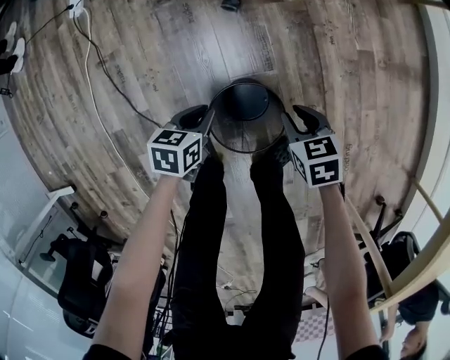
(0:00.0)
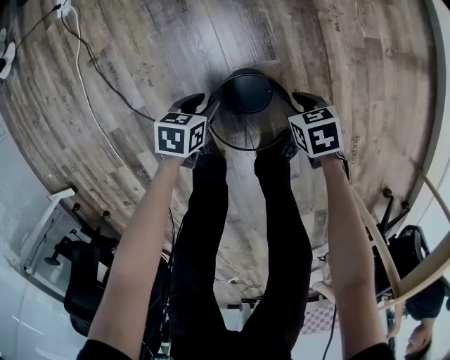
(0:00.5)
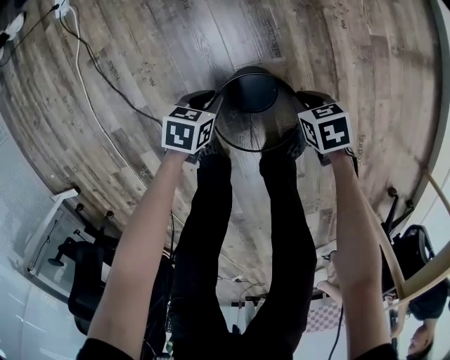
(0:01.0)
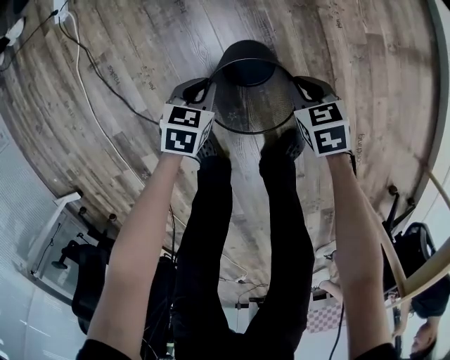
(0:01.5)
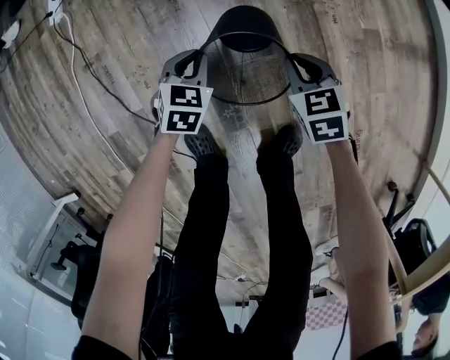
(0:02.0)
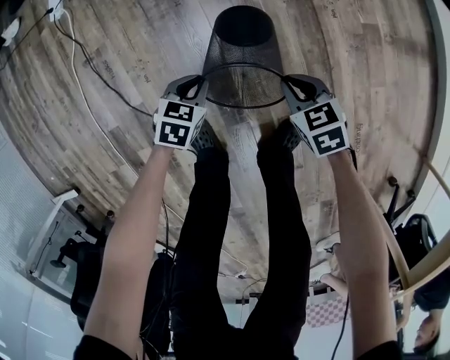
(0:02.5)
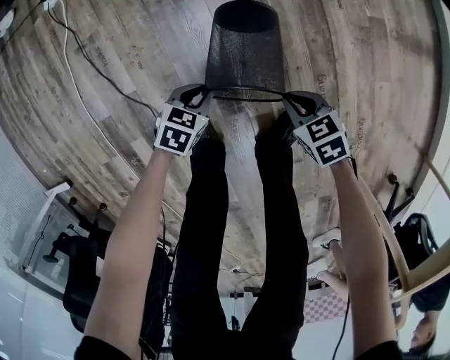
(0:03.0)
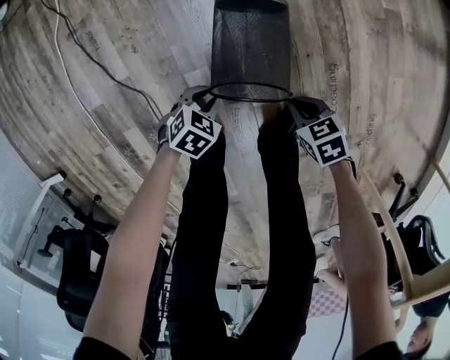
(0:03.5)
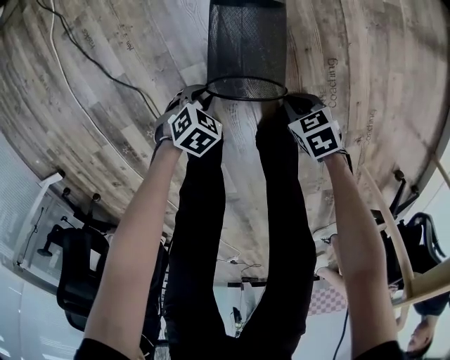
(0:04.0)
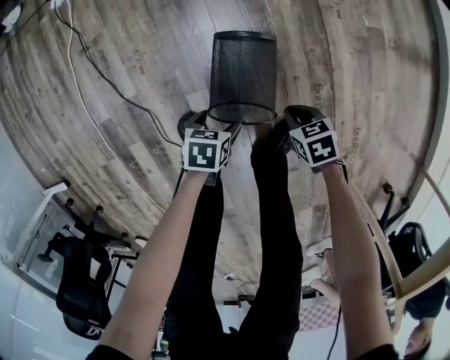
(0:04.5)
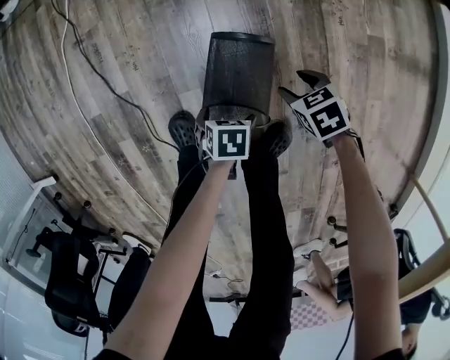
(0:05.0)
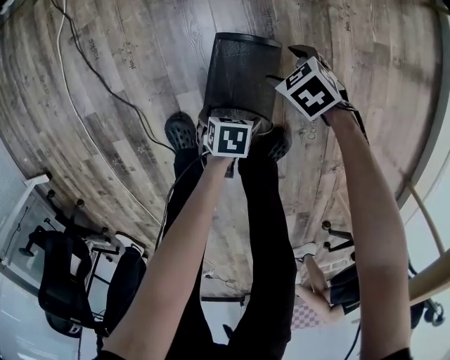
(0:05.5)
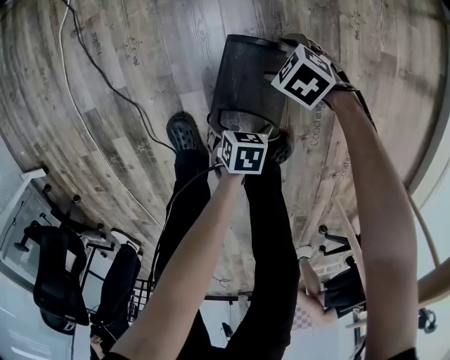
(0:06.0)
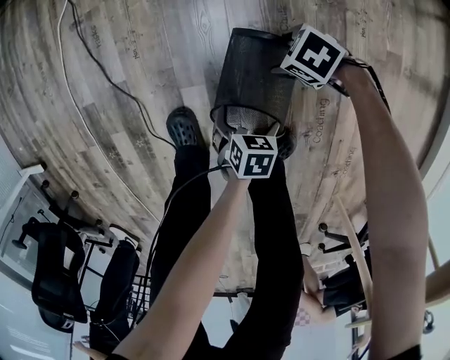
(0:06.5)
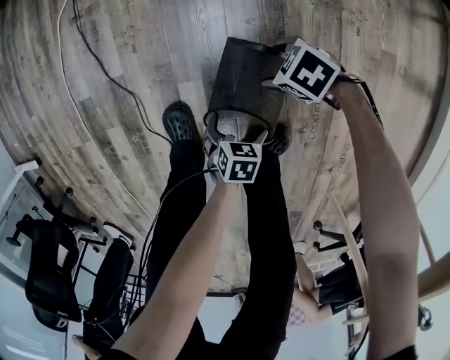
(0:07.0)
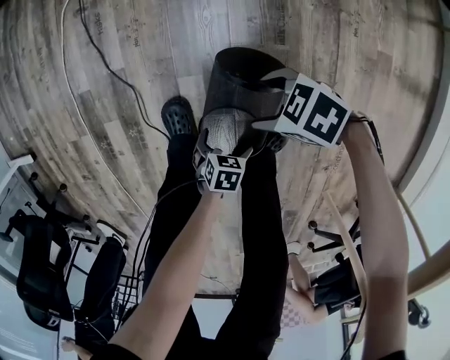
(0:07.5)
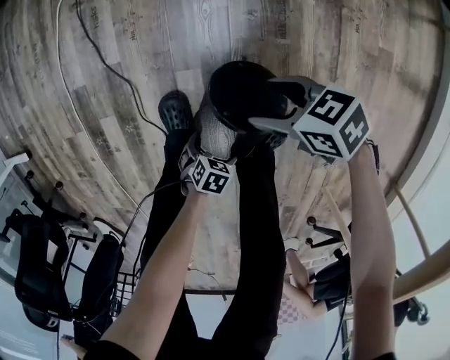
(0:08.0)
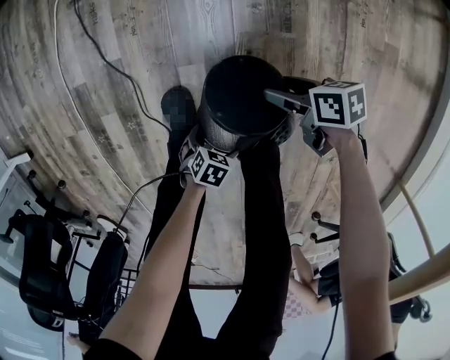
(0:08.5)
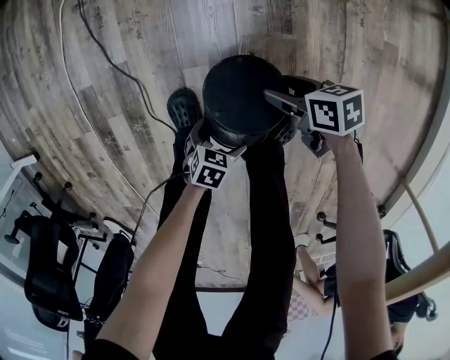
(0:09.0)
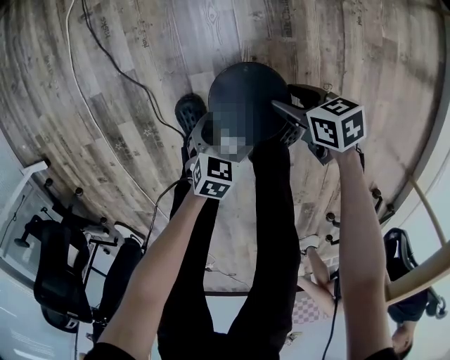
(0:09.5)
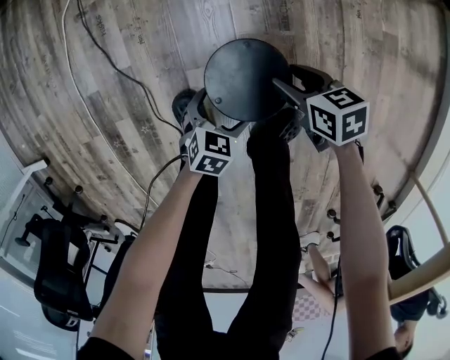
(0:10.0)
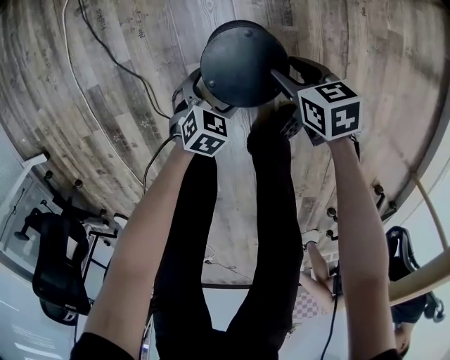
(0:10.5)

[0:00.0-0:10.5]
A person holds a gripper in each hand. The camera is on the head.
0:00.0 to 0:02.0: The left gripper ends up approximately 10 cm from where it was, and swivels approximately 40 degrees, while the right gripper moves about 10 cm.
0:02.0 to 0:04.0: The right gripper moves roughly 30 cm, and rotates approximately 30 degrees, while the left gripper ends up about 30 cm from where it was, and turns by about 30 degrees.
0:04.0 to 0:06.5: The right gripper shifts by some 25 cm, rotates roughly 40 degrees, and opens up. The left gripper ends up approximately 10 cm from where it was, rotates around the line of its fingers by some 50 degrees, counterclockwise from behind, and opens up.
0:06.5 to 0:08.5: The left gripper changes place by some 20 cm, and swivels about 20 degrees, while the right gripper ends up about 15 cm from where it was, and twists about 50 degrees clockwise, seen from behind.
0:08.5 to 0:10.5: The right gripper rotates some 30 degrees; the left gripper shifts by some 20 cm, and rotates approximately 30 degrees.

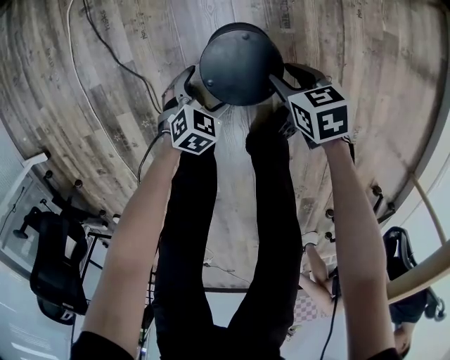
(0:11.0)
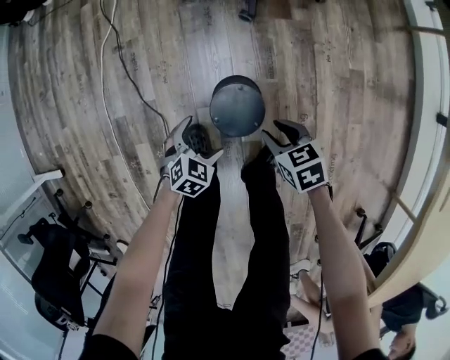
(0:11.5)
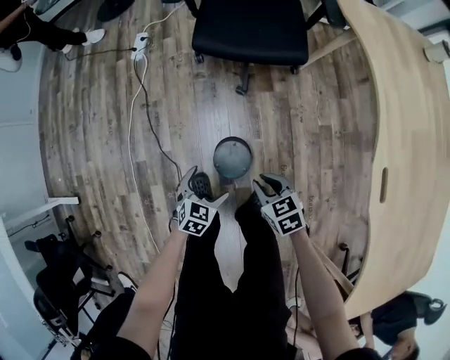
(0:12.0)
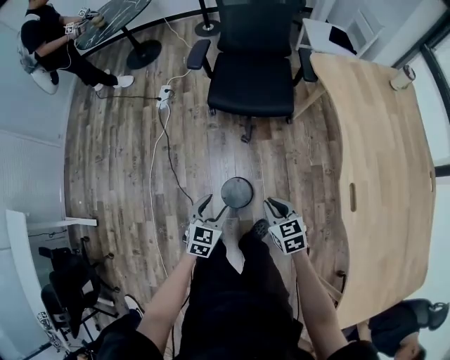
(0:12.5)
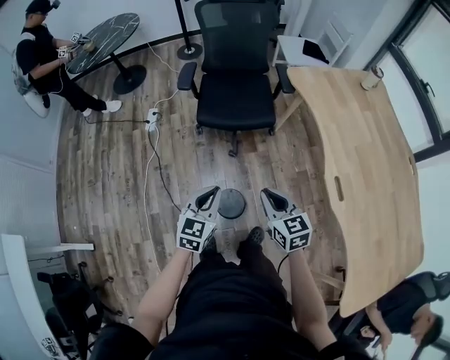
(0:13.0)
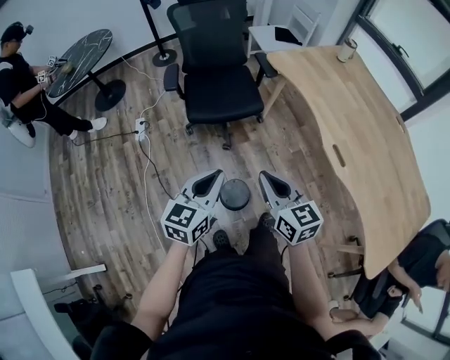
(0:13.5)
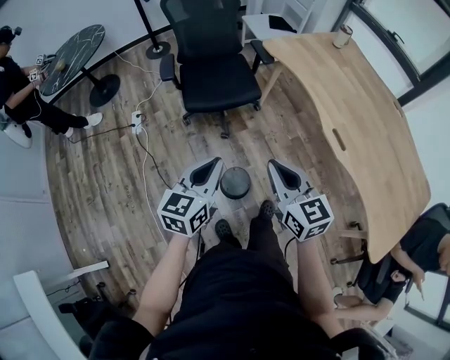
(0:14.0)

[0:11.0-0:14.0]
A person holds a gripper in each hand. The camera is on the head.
0:11.0 to 0:12.5: Both grippers move upward, approximately 50 cm. The right gripper turns by roughly 30 degrees; the left gripper turns by roughly 30 degrees, and closes its fingers.
0:12.5 to 0:14.0: Both grippers move upward, some 25 cm. The right gripper turns by some 40 degrees. The left gripper changes its angle by about 30 degrees, and closes up.

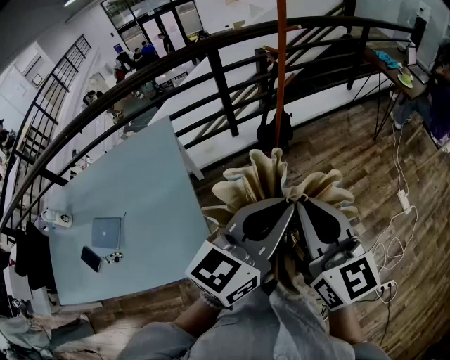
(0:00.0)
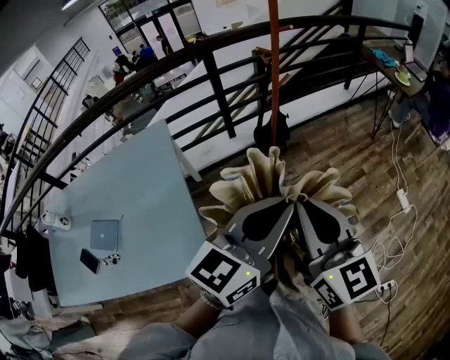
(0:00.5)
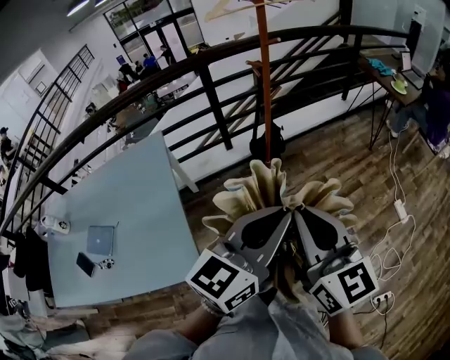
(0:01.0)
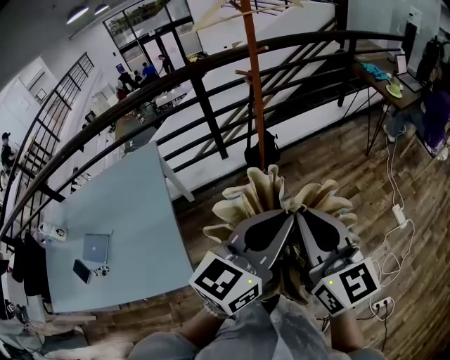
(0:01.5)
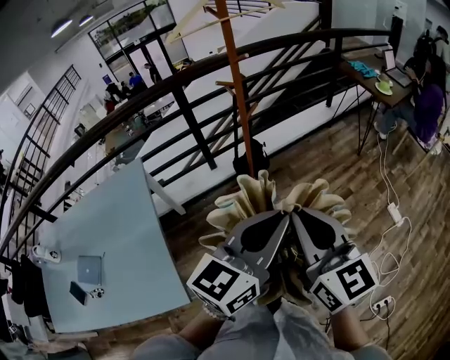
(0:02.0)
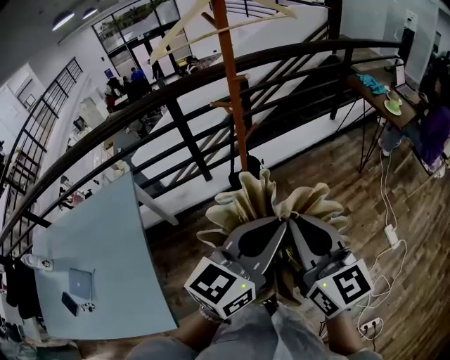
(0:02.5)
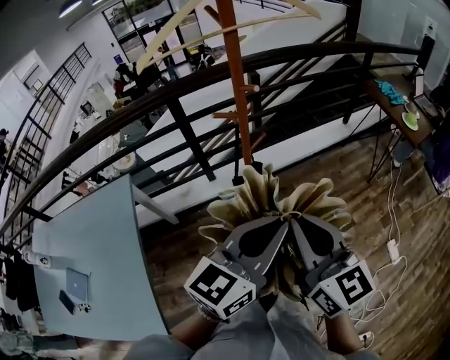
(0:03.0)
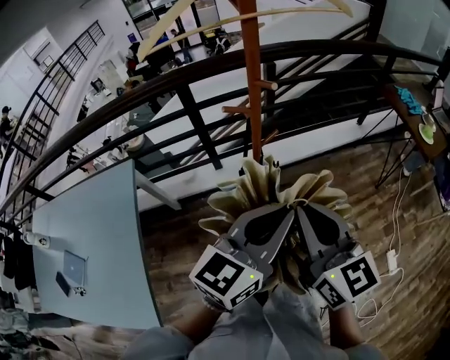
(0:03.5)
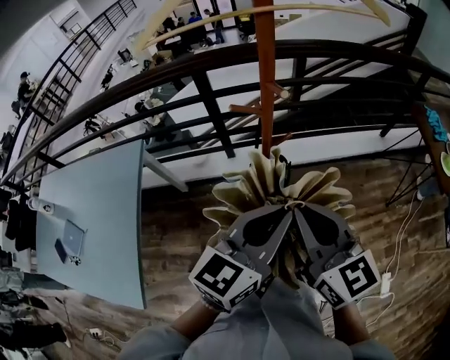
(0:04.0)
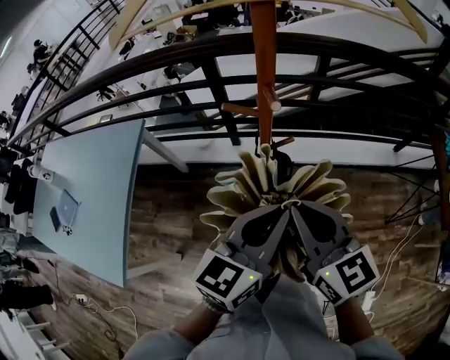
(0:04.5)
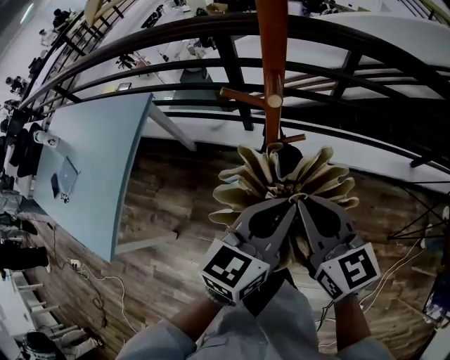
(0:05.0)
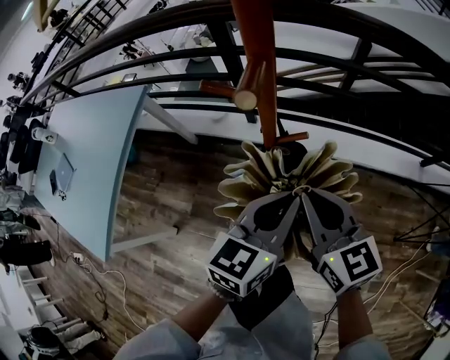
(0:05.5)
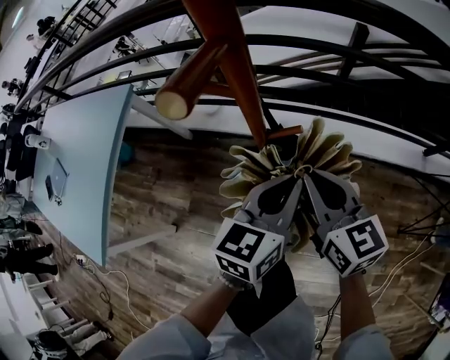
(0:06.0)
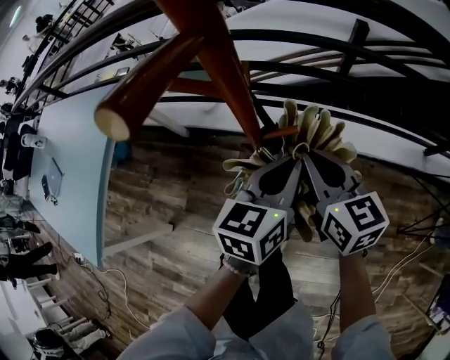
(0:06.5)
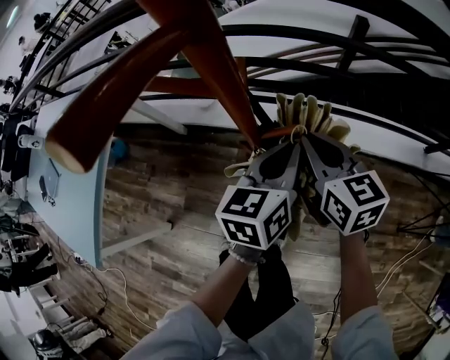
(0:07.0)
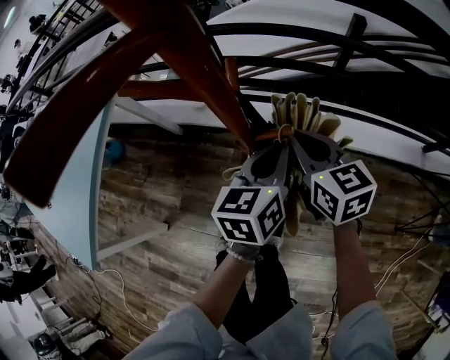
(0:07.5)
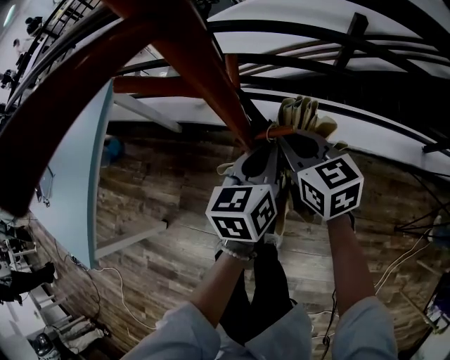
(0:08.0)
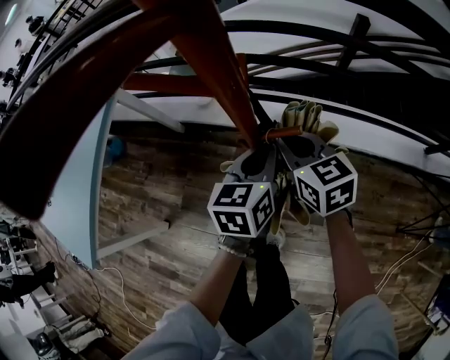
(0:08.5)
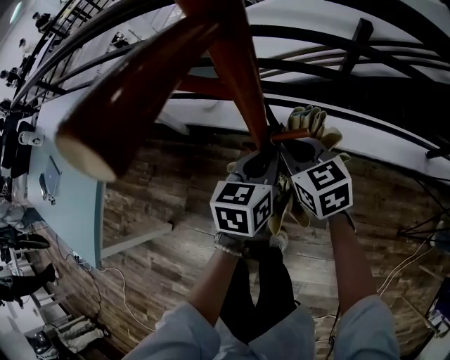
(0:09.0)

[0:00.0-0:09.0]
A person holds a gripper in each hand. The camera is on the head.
0:00.0 to 0:02.0: The two grippers go roughly 15 cm to the right and forward.
0:02.0 to 0:04.5: The left gripper ends up some 40 cm from where it was, and turns by roughly 40 degrees. The right gripper shifts by about 40 cm, and turns by approximately 40 degrees.
0:04.5 to 0:07.0: The right gripper heads forward and downward, covering roughly 30 cm; the left gripper travels downward and forward by roughly 30 cm, and turns by roughly 20 degrees.
0:07.0 to 0:09.0: The right gripper shifts approximately 10 cm downward and to the left. The left gripper is displaced downward by approximately 5 cm.

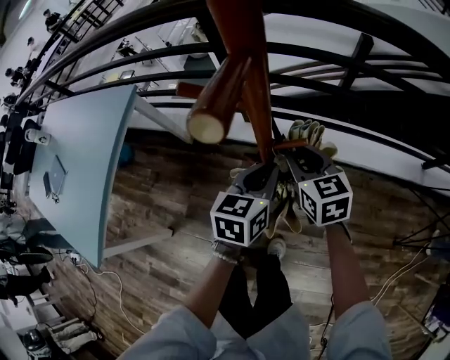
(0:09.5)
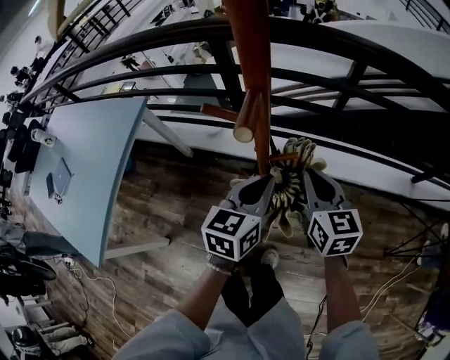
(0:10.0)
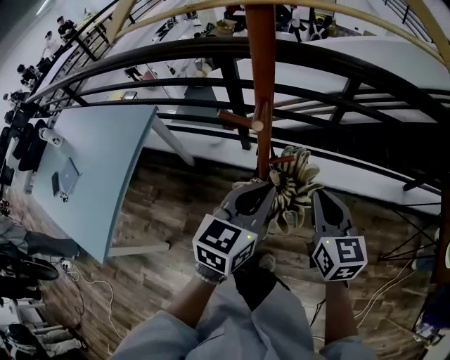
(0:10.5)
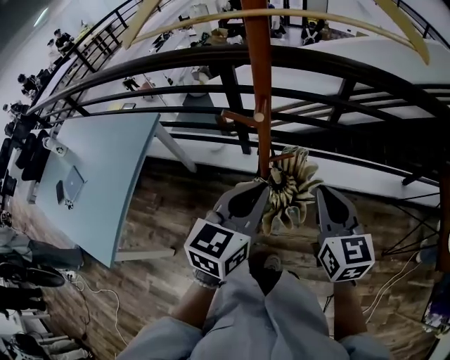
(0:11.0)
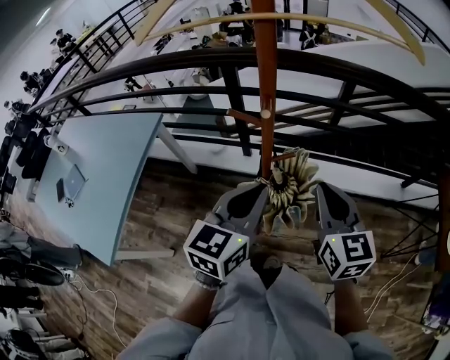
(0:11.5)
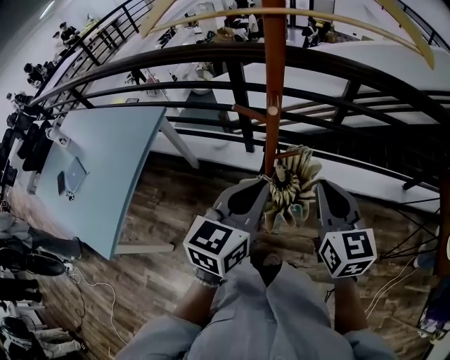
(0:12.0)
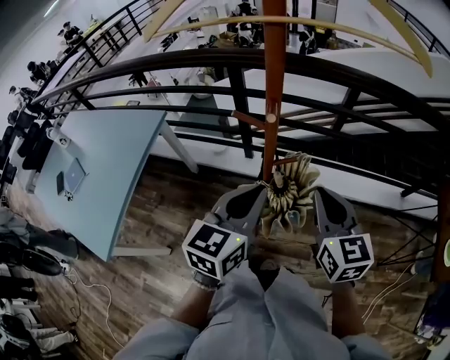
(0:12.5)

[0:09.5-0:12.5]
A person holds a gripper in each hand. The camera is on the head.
0:09.5 to 0:11.0: The left gripper goes approximately 25 cm upward and backward. Meanwhile the right gripper goes approximately 25 cm upward, backward and to the right.
0:11.0 to 0:12.5: The grippers make only small movements.
